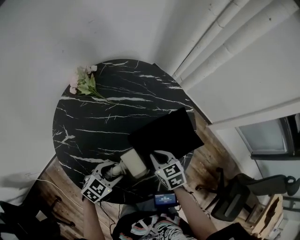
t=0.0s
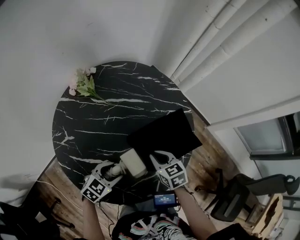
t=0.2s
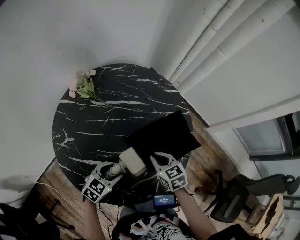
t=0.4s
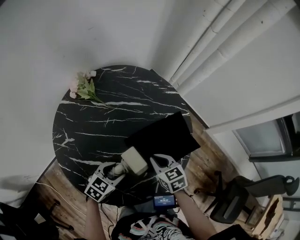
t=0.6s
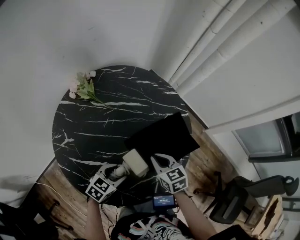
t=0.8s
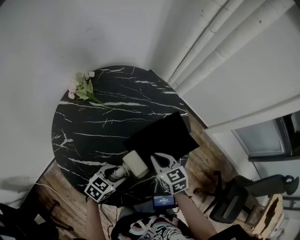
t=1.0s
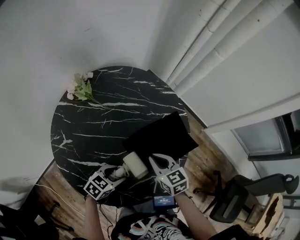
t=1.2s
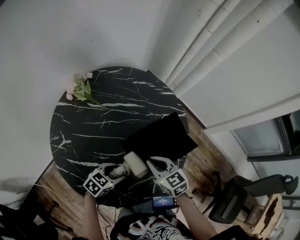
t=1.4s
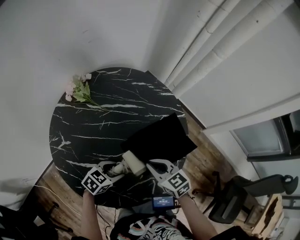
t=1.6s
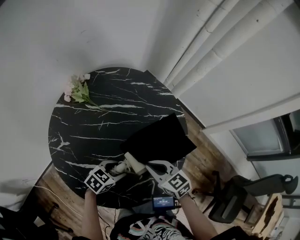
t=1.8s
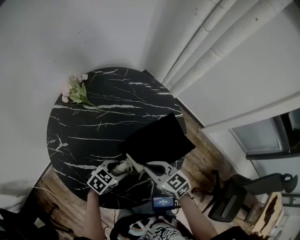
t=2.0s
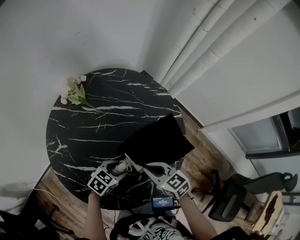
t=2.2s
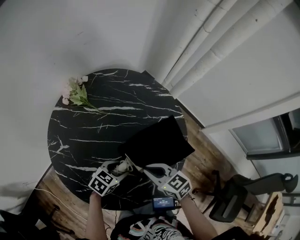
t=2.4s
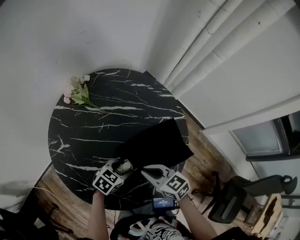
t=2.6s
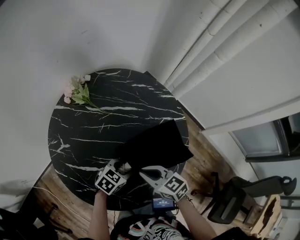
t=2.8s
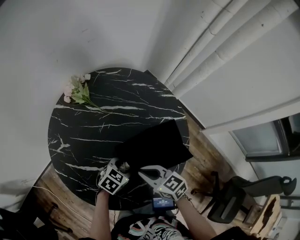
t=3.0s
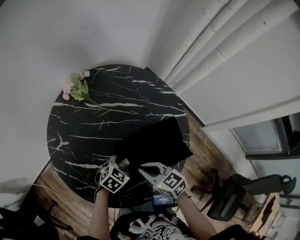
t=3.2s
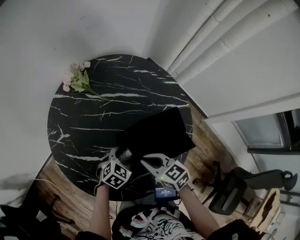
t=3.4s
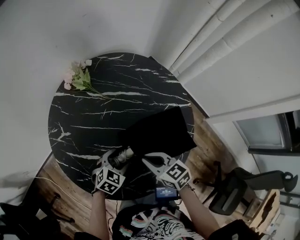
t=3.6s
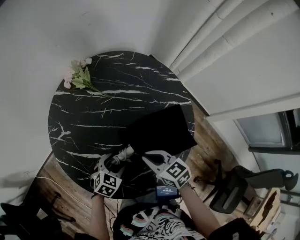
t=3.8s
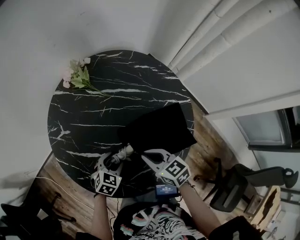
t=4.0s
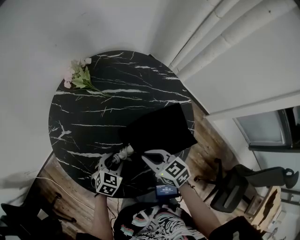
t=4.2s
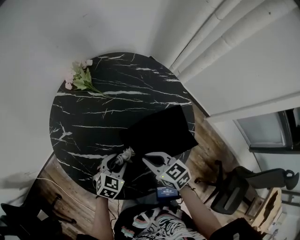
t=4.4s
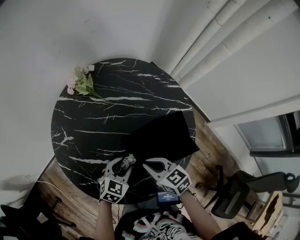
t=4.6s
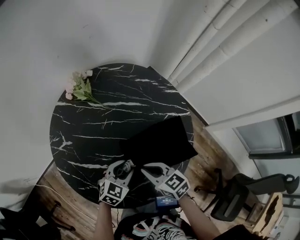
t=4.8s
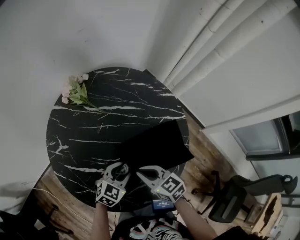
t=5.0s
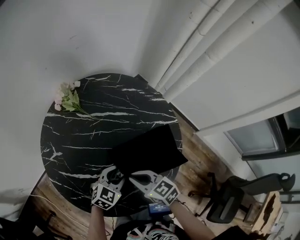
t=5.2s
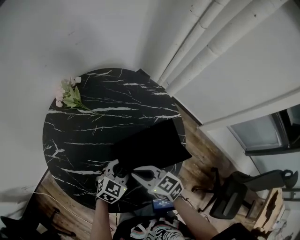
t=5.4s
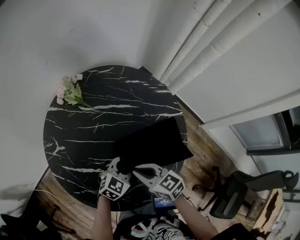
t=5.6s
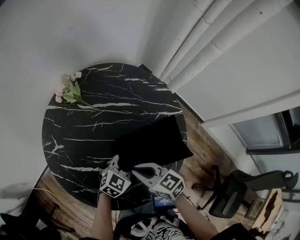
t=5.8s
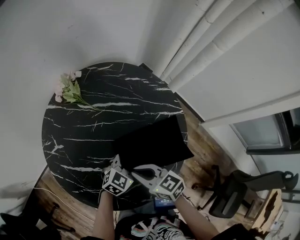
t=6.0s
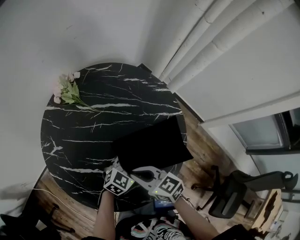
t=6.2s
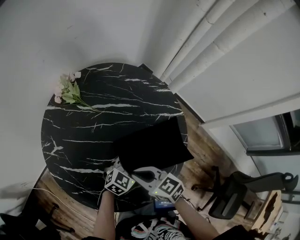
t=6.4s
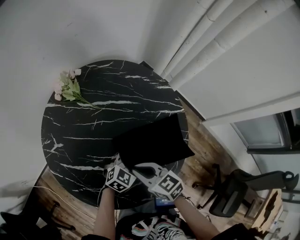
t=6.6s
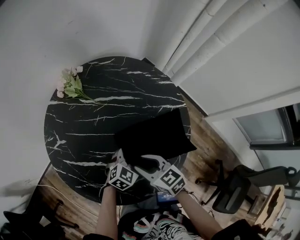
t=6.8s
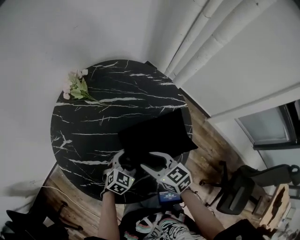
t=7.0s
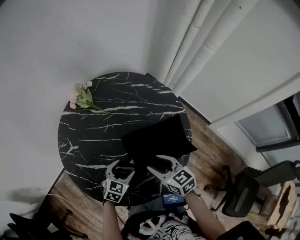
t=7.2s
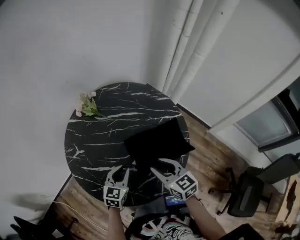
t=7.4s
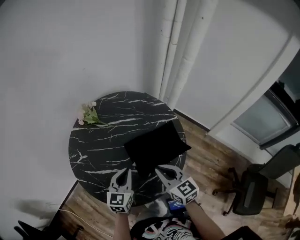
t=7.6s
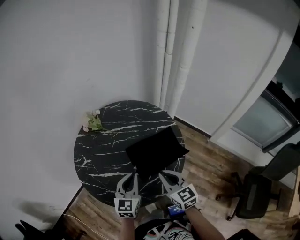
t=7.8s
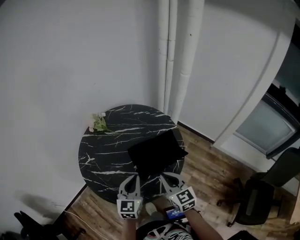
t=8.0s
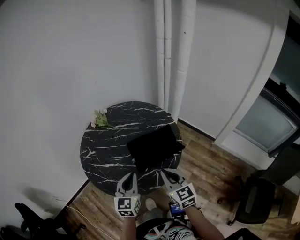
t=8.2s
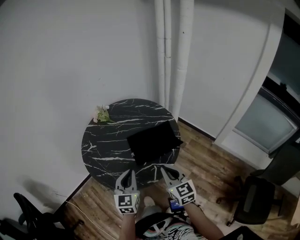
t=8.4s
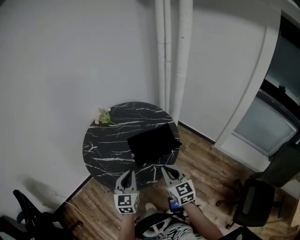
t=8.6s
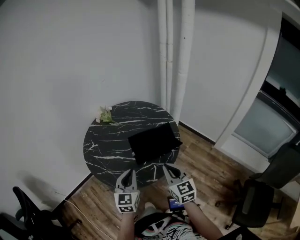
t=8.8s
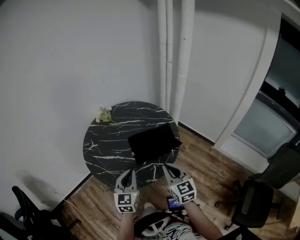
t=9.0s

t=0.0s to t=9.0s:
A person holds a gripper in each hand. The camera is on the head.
t=0.0s to t=1.6s: The right gripper shifts about 5 cm upward.
t=1.6s to t=3.0s: The left gripper changes place by roughly 5 cm.
t=3.0s to t=4.4s: The left gripper is displaced to the left by some 5 cm.
t=4.4s to t=6.0s: The left gripper goes about 10 cm to the right.
t=6.0s to t=7.6s: The left gripper shifts roughly 20 cm upward, to the left and backward, rotates about 30 degrees, and closes up, while the right gripper moves upward, backward and to the right, some 15 cm, swivels roughly 30 degrees, and opens, then closes again.
t=7.6s to t=9.0s: The left gripper goes about 20 cm backward and upward. The right gripper goes some 15 cm backward and to the right.

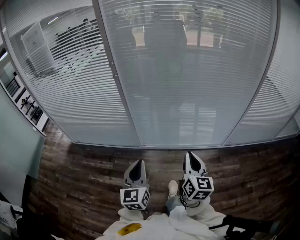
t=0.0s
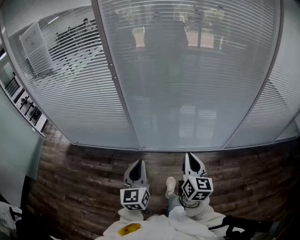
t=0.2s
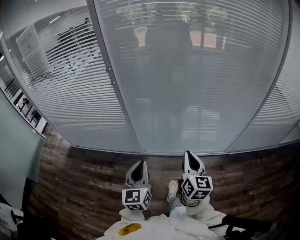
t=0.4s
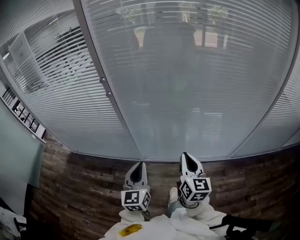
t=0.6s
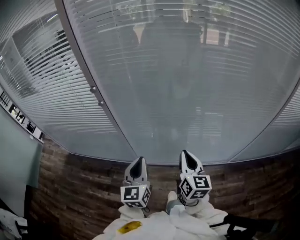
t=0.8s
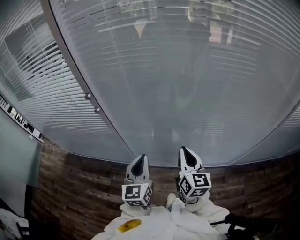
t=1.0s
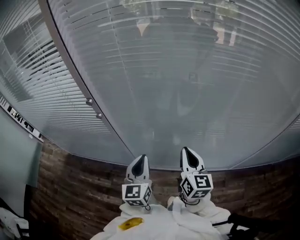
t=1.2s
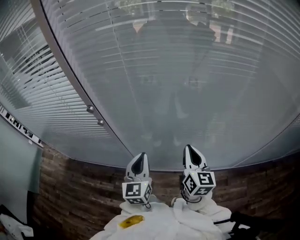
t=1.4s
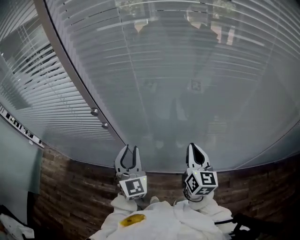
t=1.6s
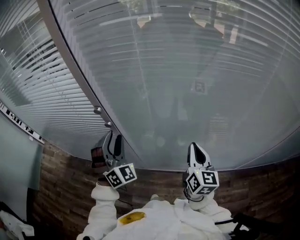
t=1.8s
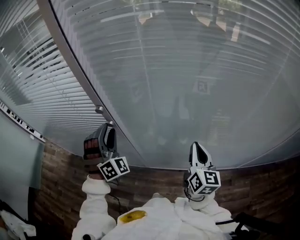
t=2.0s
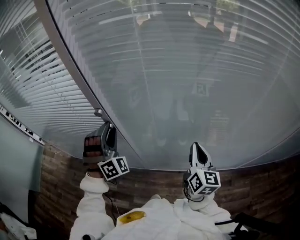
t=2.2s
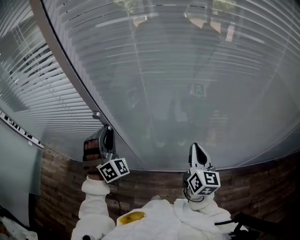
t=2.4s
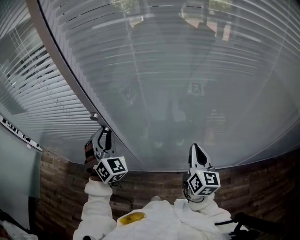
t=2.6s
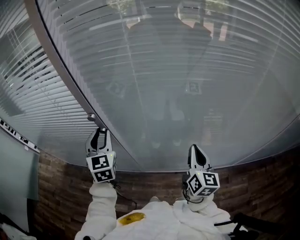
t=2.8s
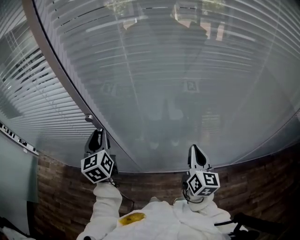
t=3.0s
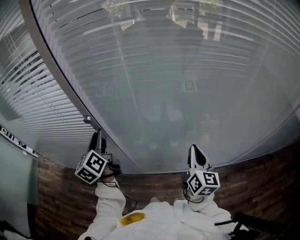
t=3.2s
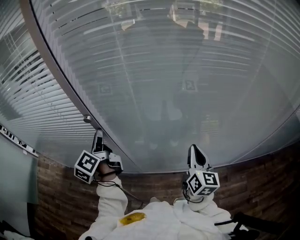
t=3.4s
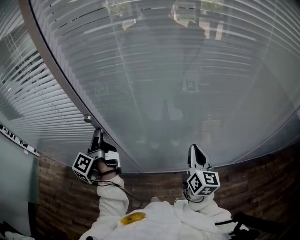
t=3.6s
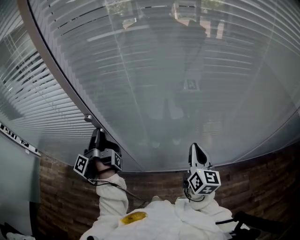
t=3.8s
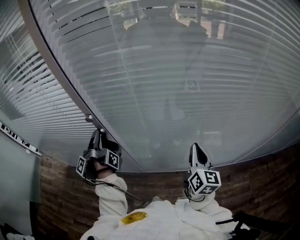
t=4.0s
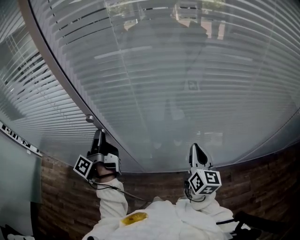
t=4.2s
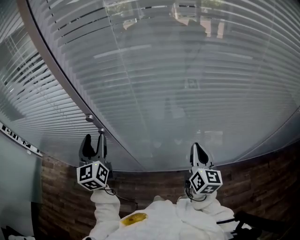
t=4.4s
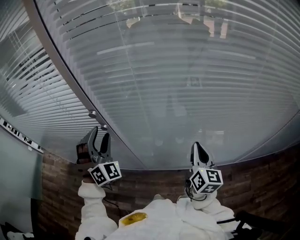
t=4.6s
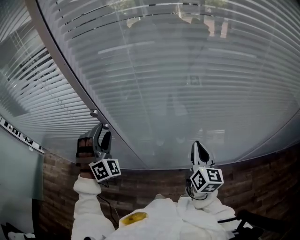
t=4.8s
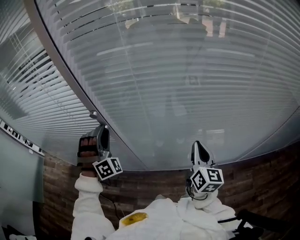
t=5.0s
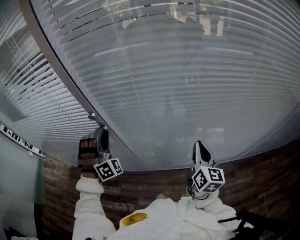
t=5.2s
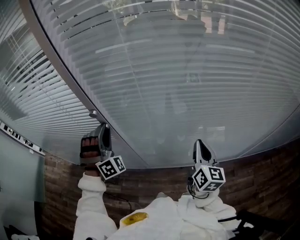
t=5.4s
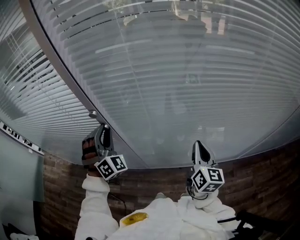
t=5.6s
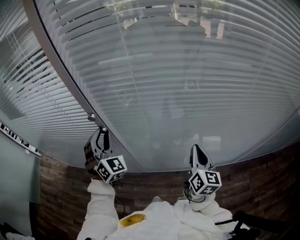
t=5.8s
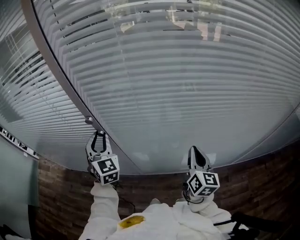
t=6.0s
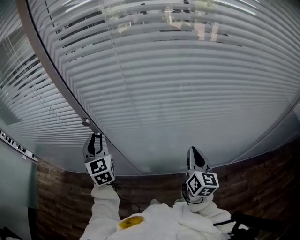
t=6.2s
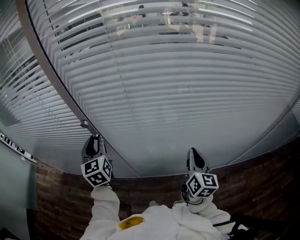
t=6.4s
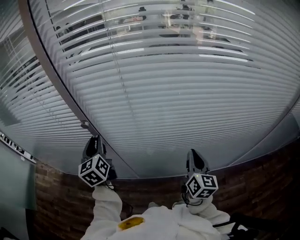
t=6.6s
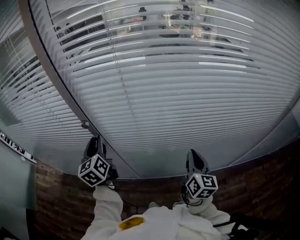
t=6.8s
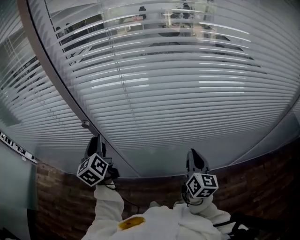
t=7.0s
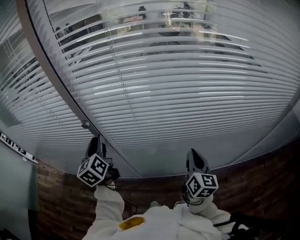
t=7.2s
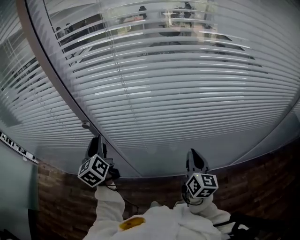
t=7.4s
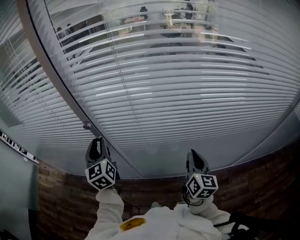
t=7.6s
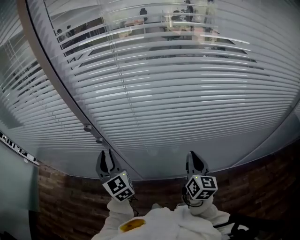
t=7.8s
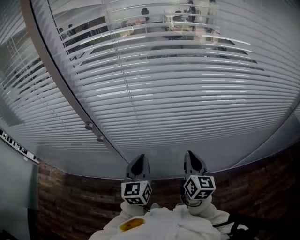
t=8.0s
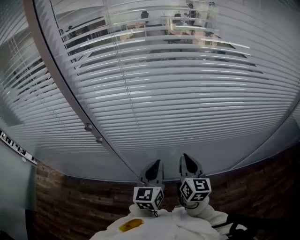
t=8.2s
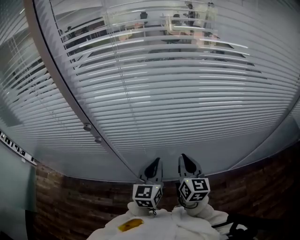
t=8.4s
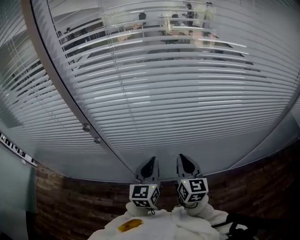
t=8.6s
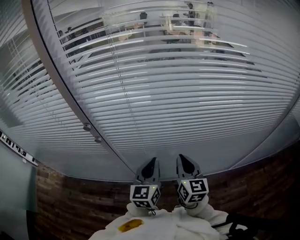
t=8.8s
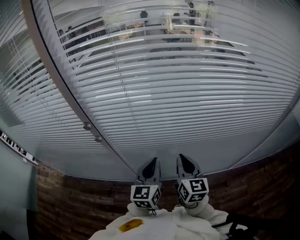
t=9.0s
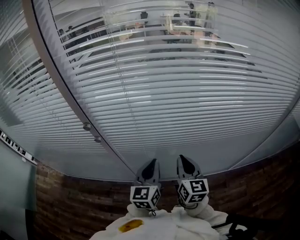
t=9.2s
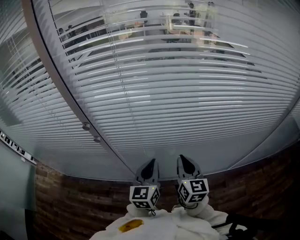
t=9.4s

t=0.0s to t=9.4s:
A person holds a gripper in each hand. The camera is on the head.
t=0.0s to t=1.6s: The pair of grippers is taken forward, about 50 cm. The left gripper rotates some 30 degrees.
t=1.6s to t=3.2s: The left gripper moves to the left and forward, roughly 15 cm, and rotates around the line of its fingers by roughly 50 degrees, counterclockwise from behind.
t=3.2s to t=4.8s: The left gripper rotates around the line of its fingers by about 110 degrees, clockwise from behind, and opens.
t=4.8s to t=6.2s: The left gripper twists roughly 70 degrees counterclockwise, seen from behind, and closes.
t=6.2s to t=7.8s: The left gripper shifts by approximately 5 cm.
t=7.8s to t=9.4s: The left gripper heads to the right, covering about 20 cm, changes its angle by approximately 40 degrees, and closes.

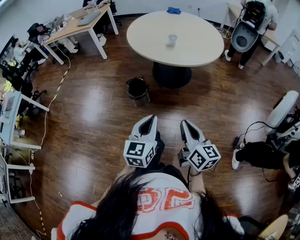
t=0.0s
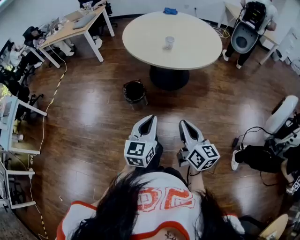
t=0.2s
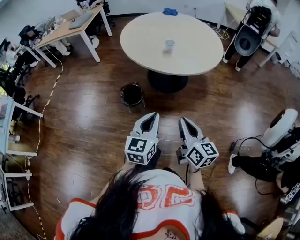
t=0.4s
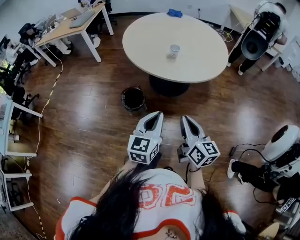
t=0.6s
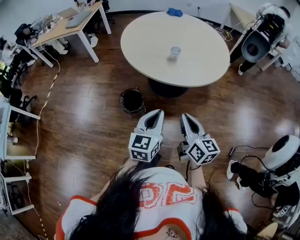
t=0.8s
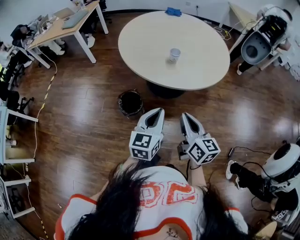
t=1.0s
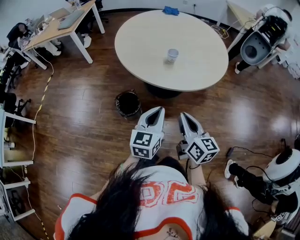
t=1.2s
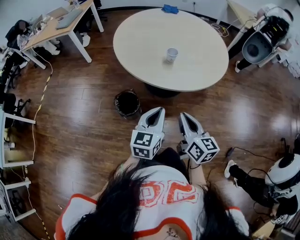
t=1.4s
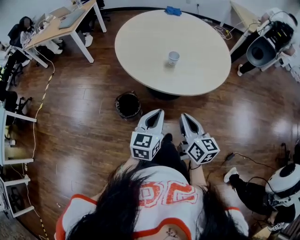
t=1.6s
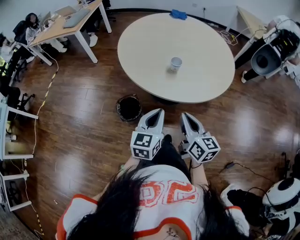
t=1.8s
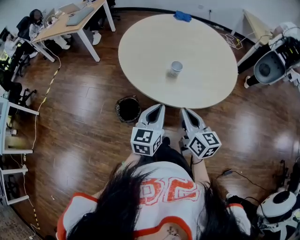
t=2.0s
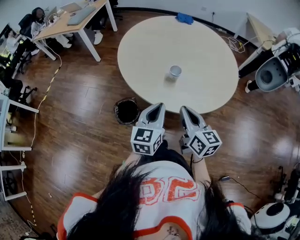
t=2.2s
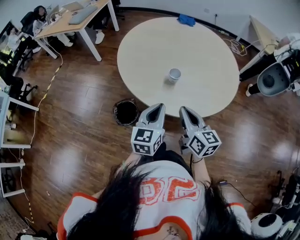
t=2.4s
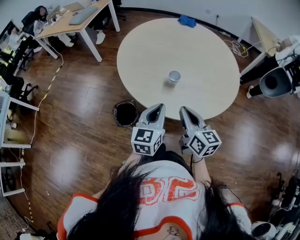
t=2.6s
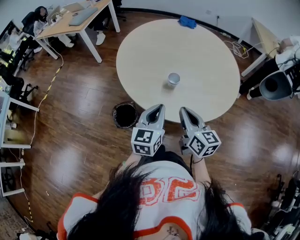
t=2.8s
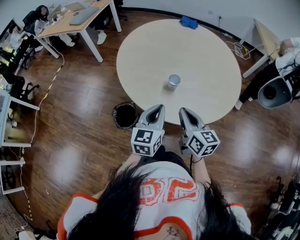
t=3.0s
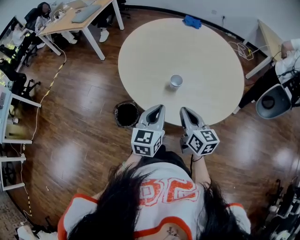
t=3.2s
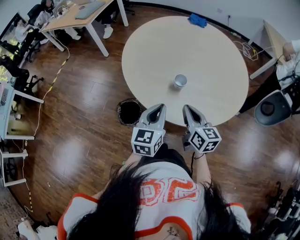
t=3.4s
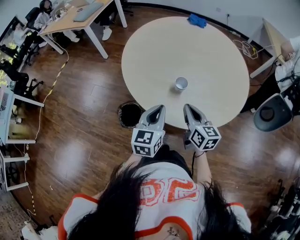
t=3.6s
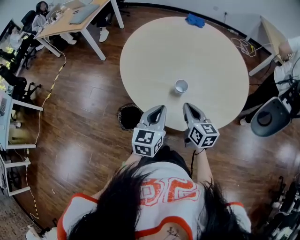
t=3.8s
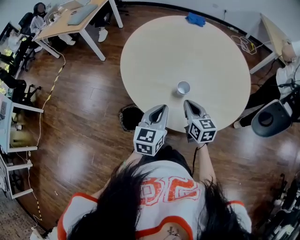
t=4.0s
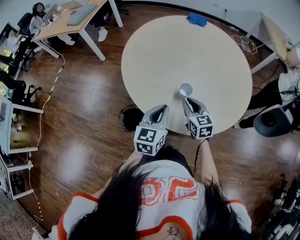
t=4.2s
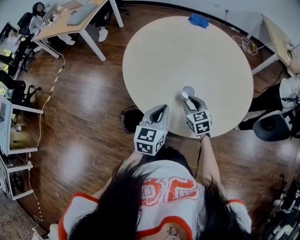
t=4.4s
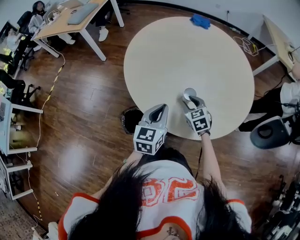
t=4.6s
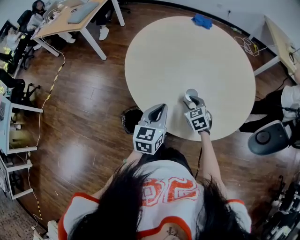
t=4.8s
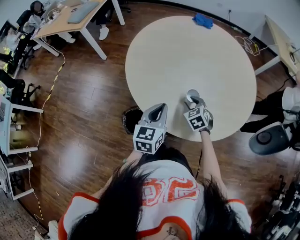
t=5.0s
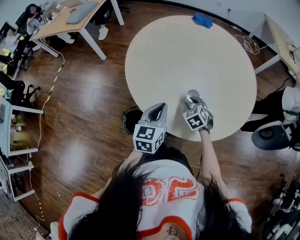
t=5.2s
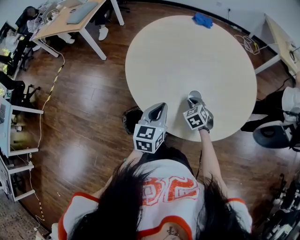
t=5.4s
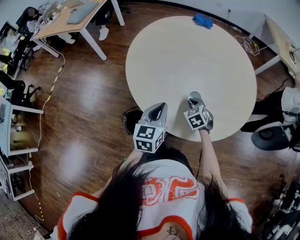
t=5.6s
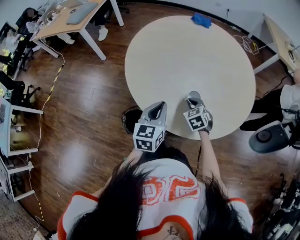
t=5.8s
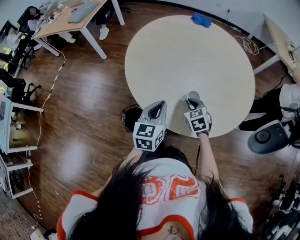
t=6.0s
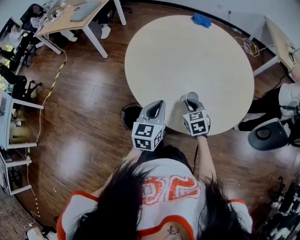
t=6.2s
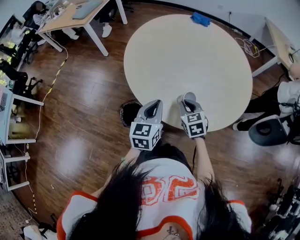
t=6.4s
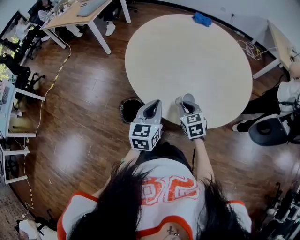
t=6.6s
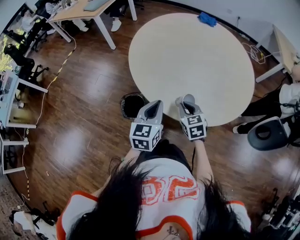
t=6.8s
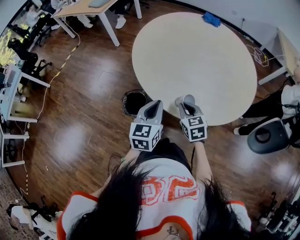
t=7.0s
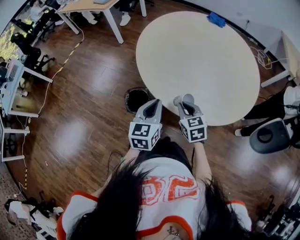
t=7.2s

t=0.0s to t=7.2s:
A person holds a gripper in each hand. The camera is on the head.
t=0.0s to t=1.4s: The two grippers go about 25 cm forward.
t=1.4s to t=2.8s: The two grippers go some 15 cm forward.
t=2.8s to t=4.4s: The right gripper shifts roughly 20 cm forward and downward, swivels some 40 degrees, and opens up, while the left gripper is displaced forward by approximately 10 cm.
t=4.4s to t=5.8s: The right gripper closes its fingers.
t=5.8s to t=7.2s: The right gripper travels backward and upward by some 15 cm, and turns by approximately 20 degrees. Meanwhile the left gripper travels backward by about 10 cm.
